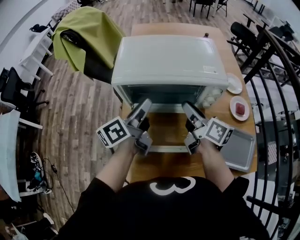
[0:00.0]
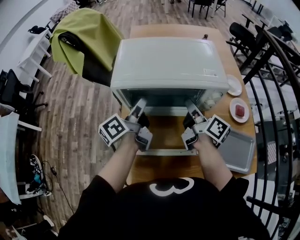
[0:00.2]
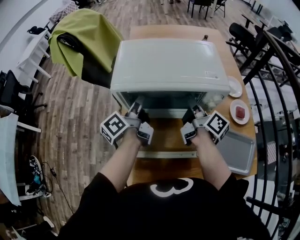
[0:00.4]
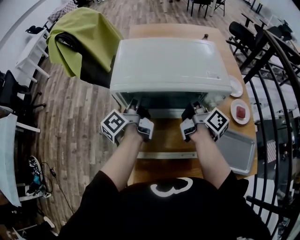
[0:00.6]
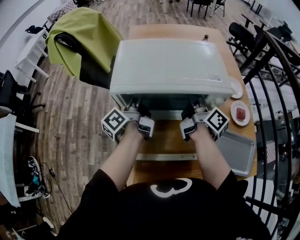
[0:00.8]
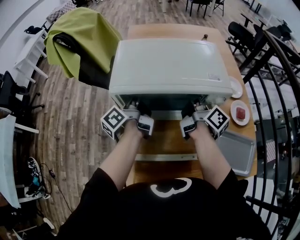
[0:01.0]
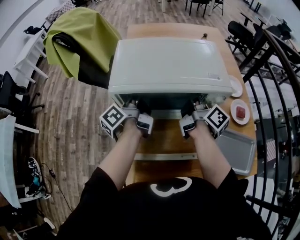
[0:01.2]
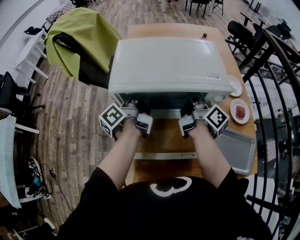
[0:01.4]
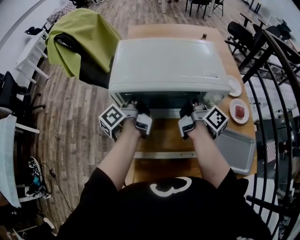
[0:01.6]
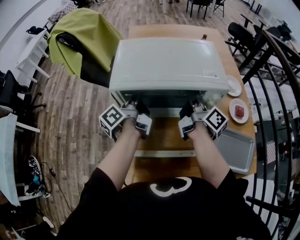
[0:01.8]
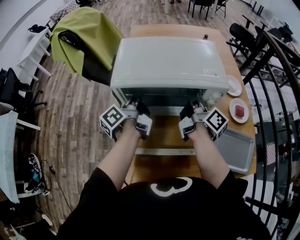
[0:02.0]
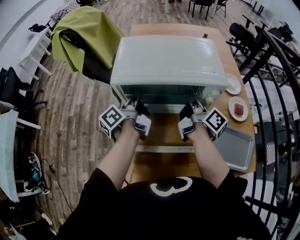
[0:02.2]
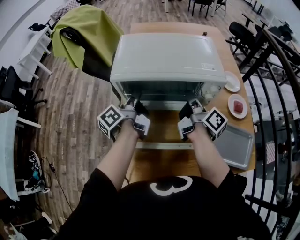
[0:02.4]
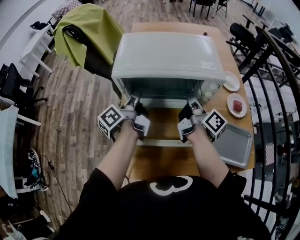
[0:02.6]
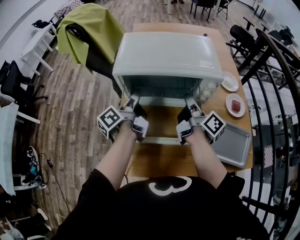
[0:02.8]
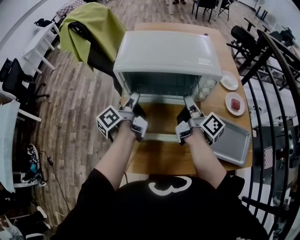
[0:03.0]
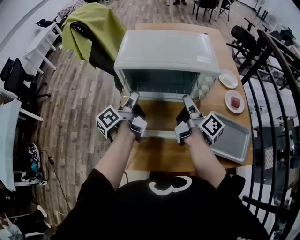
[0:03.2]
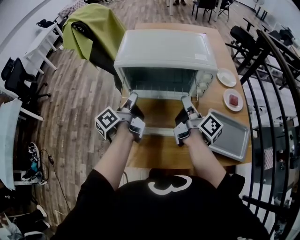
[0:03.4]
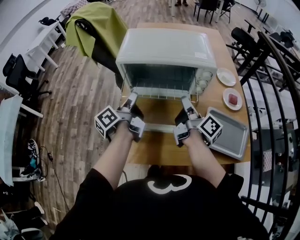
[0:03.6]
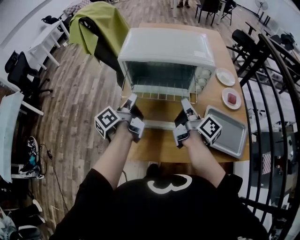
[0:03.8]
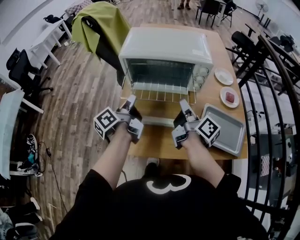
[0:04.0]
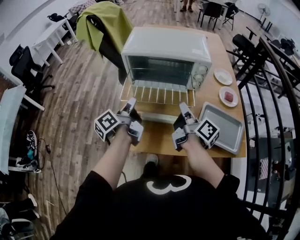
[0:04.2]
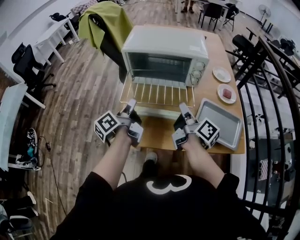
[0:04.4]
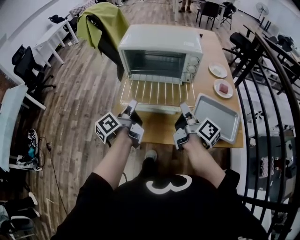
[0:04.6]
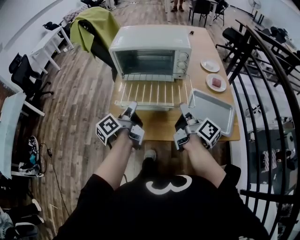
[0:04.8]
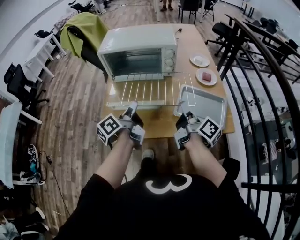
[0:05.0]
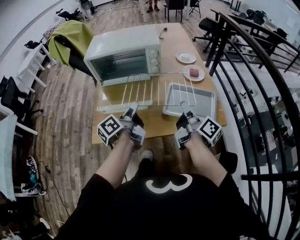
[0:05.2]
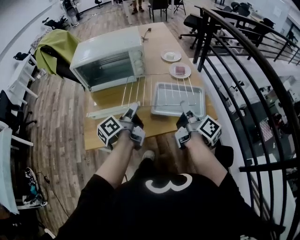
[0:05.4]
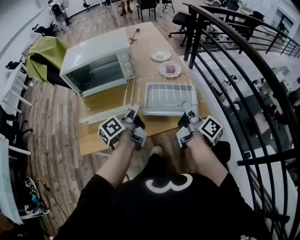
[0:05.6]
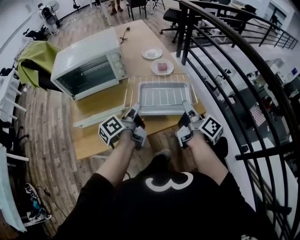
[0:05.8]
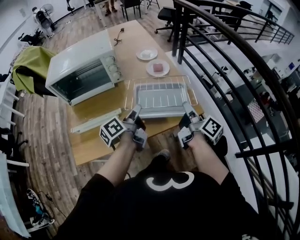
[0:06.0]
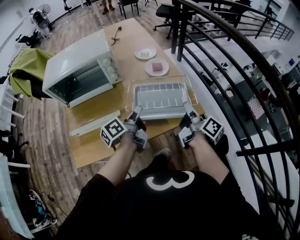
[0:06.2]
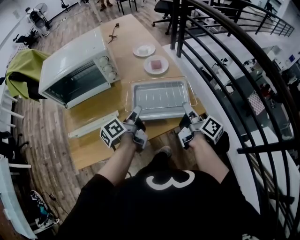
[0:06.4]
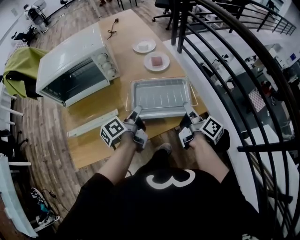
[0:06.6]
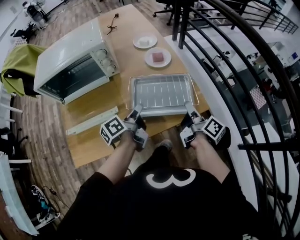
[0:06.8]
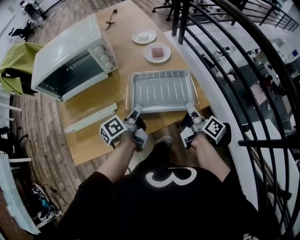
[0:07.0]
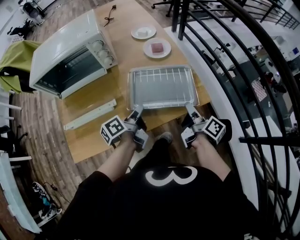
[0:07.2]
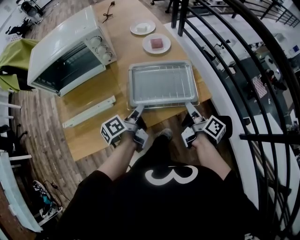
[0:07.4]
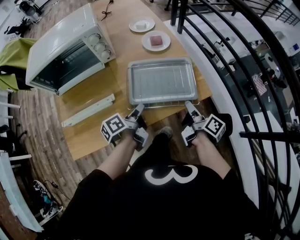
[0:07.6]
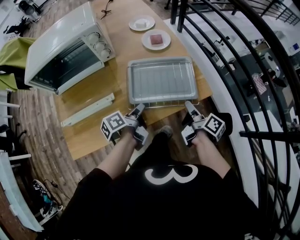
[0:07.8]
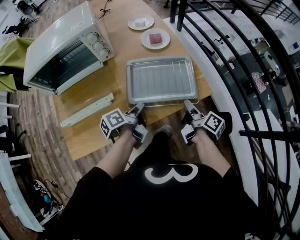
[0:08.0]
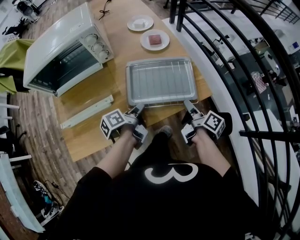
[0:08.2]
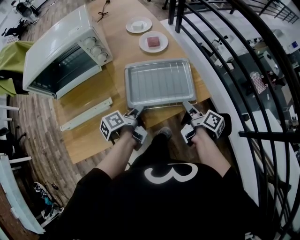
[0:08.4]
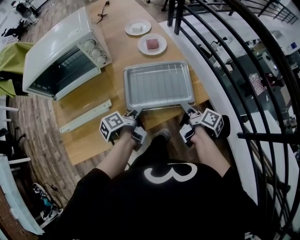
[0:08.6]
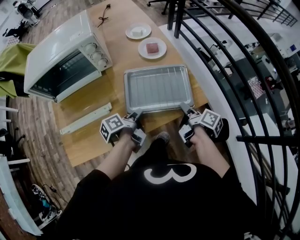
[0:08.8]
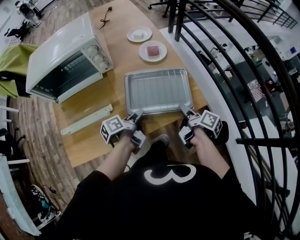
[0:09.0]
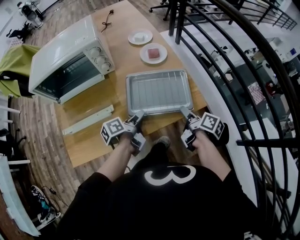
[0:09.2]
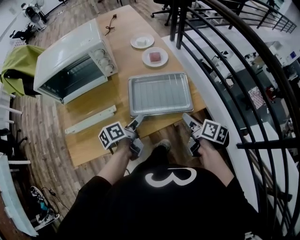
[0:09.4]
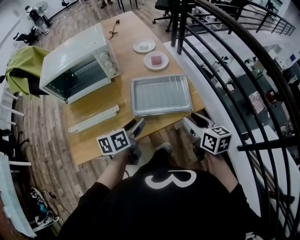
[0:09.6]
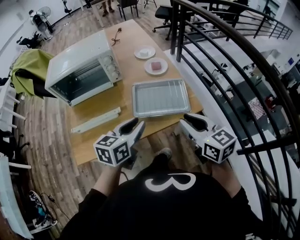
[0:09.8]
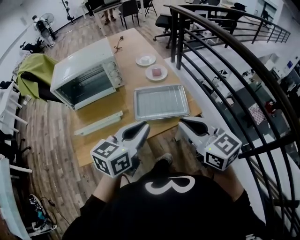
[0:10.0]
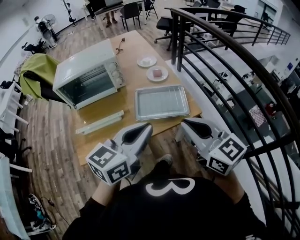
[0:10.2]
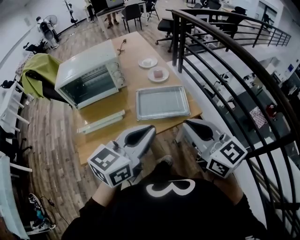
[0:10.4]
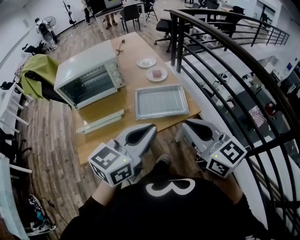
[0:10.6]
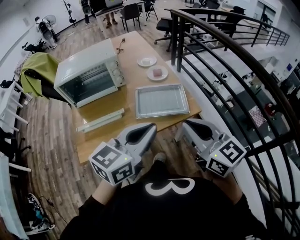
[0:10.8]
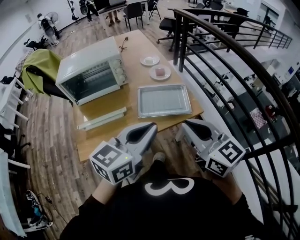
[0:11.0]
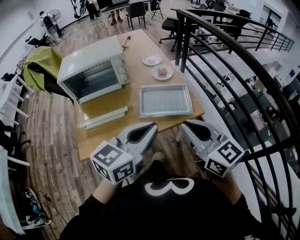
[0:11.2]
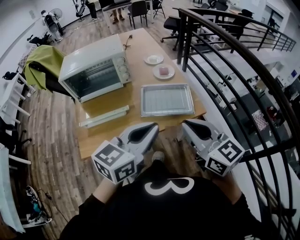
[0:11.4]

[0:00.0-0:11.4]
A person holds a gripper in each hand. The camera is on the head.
0:00.0 to 0:01.4: Both grippers move forward, some 10 cm. The left gripper rotates roughly 30 degrees, while the right gripper swivels approximately 30 degrees.
0:01.4 to 0:02.8: Both grippers move backward, approximately 10 cm.
0:02.8 to 0:04.2: The grippers both shift backward by about 15 cm.
0:04.2 to 0:05.6: The left gripper moves to the right, about 30 cm, and changes its angle by about 20 degrees; the right gripper goes about 35 cm to the right and backward, and changes its angle by some 20 degrees.
0:05.6 to 0:07.2: The two grippers go some 15 cm downward and to the right.
0:07.2 to 0:08.6: The left gripper goes some 5 cm downward.
0:08.6 to 0:10.0: Both grippers travel together upward and backward, about 30 cm. The right gripper rolls counterclockwise, seen from behind, by about 80 degrees, and opens and closes again. The left gripper rotates around the line of its fingers by approximately 70 degrees, clockwise from behind, and opens, then closes again.
0:10.0 to 0:11.4: The left gripper travels backward by approximately 5 cm.

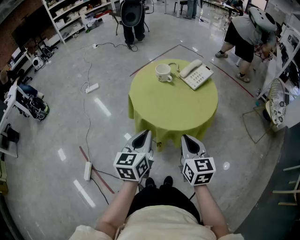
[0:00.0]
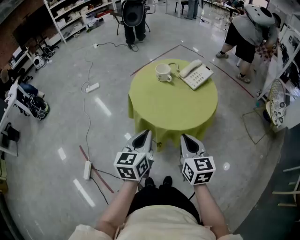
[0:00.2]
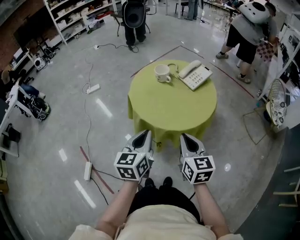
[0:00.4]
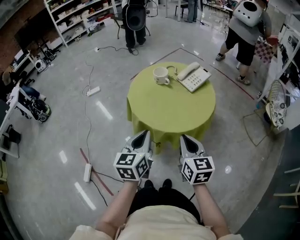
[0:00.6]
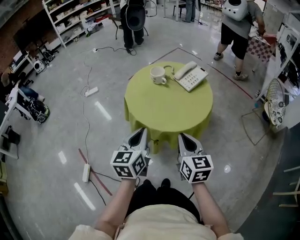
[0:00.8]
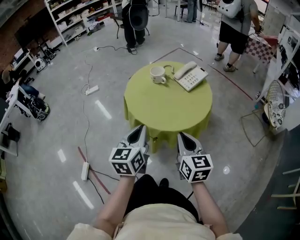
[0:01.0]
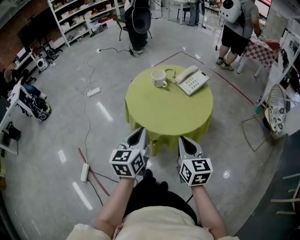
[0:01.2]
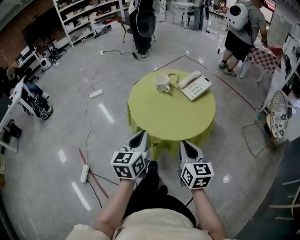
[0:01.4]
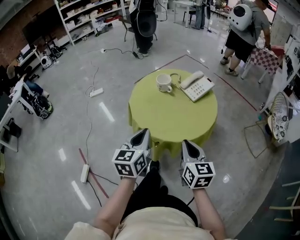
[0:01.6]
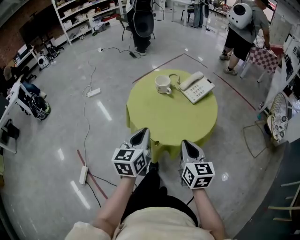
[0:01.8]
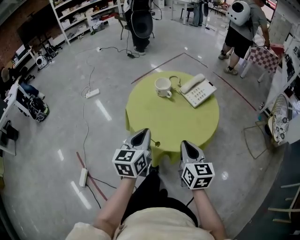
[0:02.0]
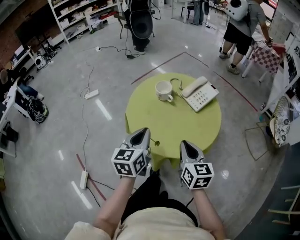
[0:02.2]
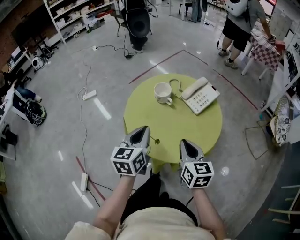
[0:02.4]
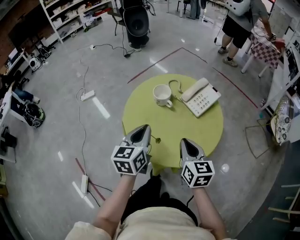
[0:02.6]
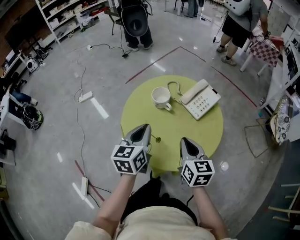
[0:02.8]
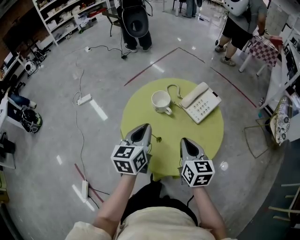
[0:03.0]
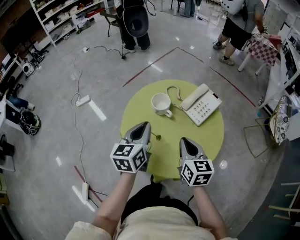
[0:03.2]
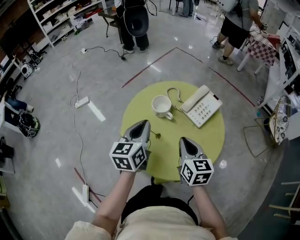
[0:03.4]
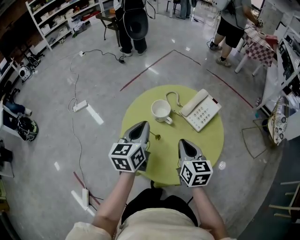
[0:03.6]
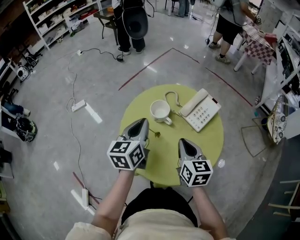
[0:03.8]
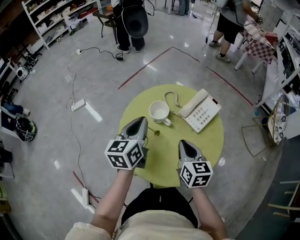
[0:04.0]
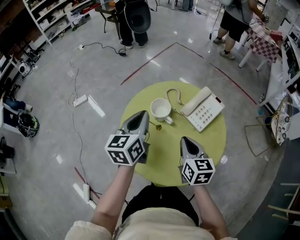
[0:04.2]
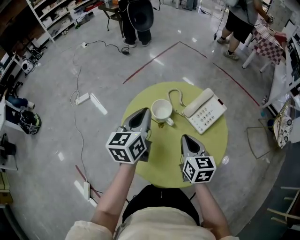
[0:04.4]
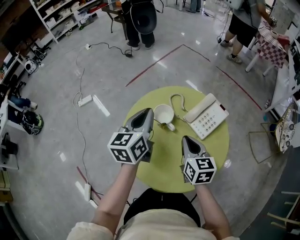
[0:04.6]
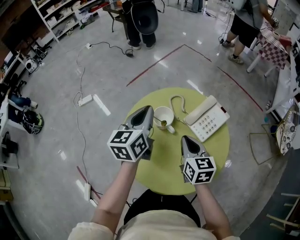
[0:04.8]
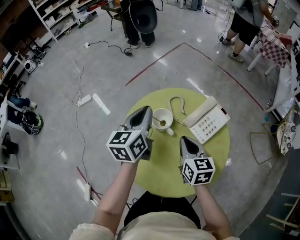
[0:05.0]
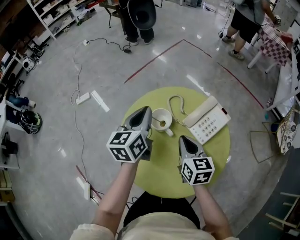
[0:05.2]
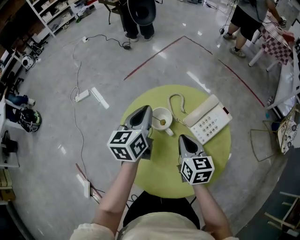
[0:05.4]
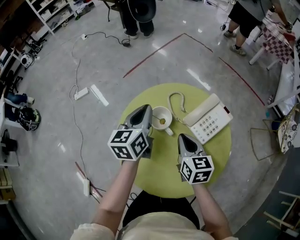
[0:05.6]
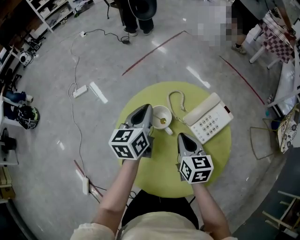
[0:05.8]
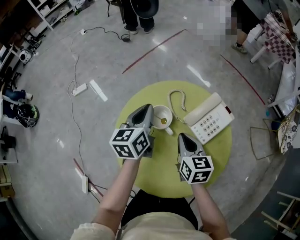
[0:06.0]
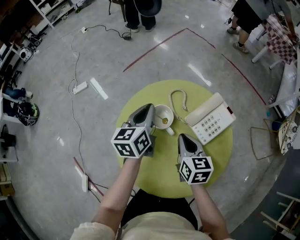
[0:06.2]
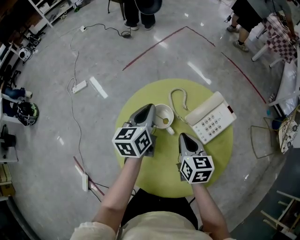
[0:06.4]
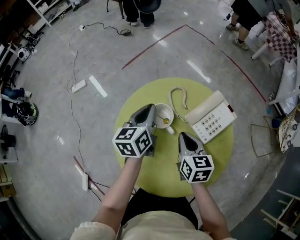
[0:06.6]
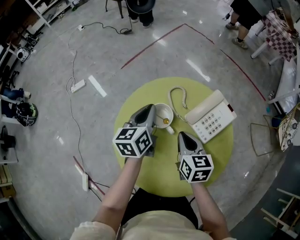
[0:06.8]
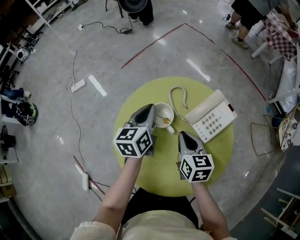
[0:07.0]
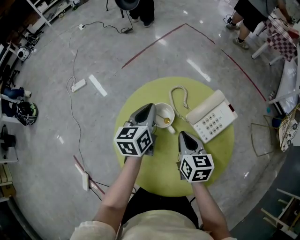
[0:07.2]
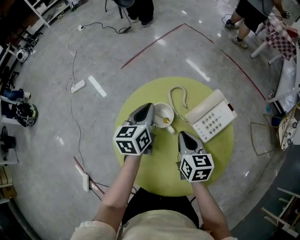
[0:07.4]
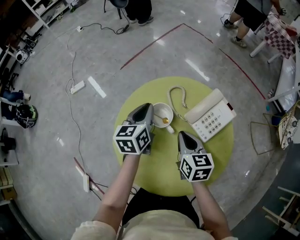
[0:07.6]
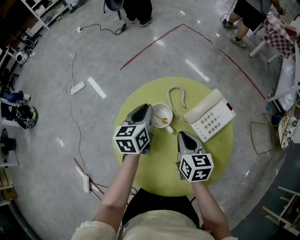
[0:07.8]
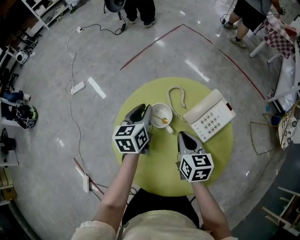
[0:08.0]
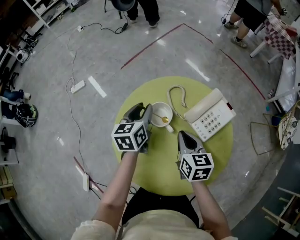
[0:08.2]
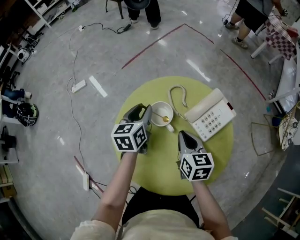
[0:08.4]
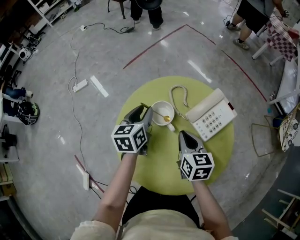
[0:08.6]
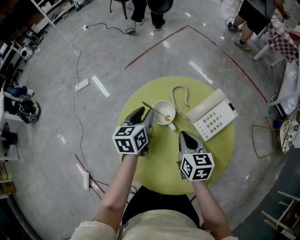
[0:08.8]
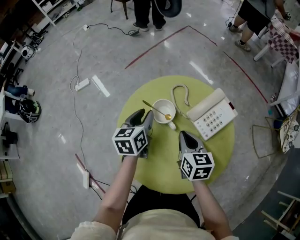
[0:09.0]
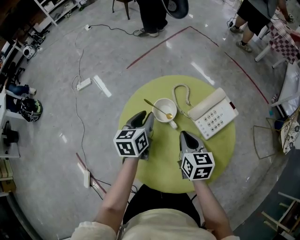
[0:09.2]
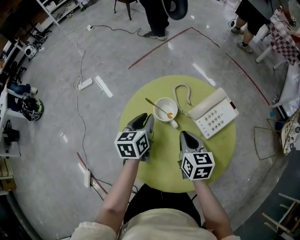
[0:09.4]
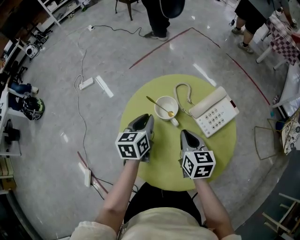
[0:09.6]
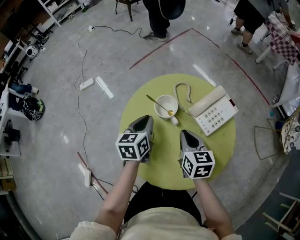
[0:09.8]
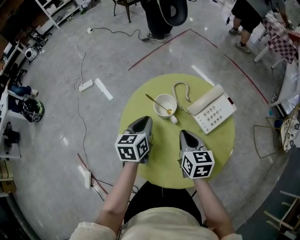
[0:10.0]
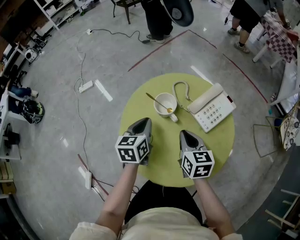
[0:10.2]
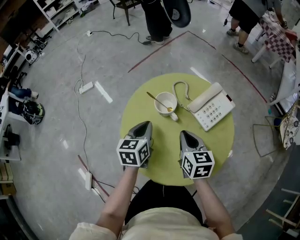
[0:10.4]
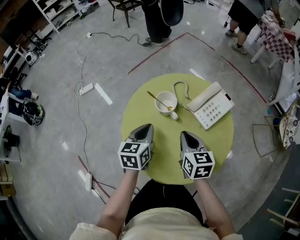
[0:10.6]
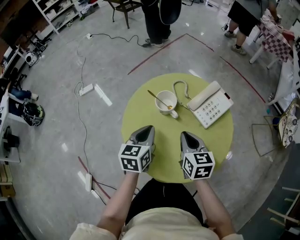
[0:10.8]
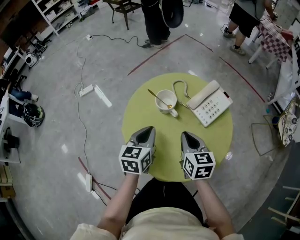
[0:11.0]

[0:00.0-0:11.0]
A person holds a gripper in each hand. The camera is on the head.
0:00.0 to 0:01.6: The grippers move only a little.
0:01.6 to 0:03.2: Both grippers move forward, roughly 25 cm.
0:03.2 to 0:04.8: The grippers both shift forward by approximately 10 cm.
0:04.8 to 0:06.2: The left gripper shifts approximately 10 cm downward, while the right gripper ends up approximately 5 cm from where it was.
0:06.2 to 0:07.8: The grippers make only small movements.
0:07.8 to 0:09.4: The left gripper travels backward by some 5 cm.
0:09.4 to 0:11.0: The right gripper goes some 5 cm backward. Meanwhile the left gripper travels backward by approximately 10 cm, and closes its fingers.

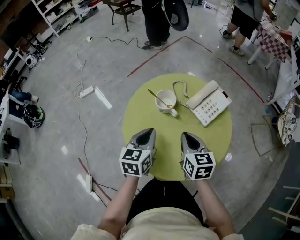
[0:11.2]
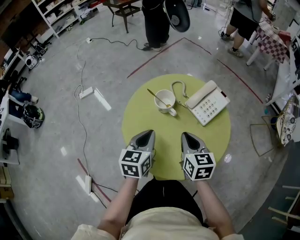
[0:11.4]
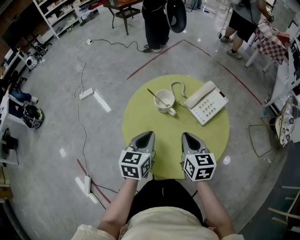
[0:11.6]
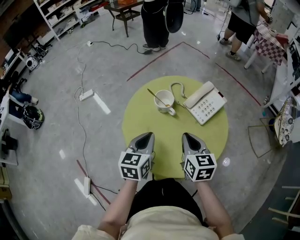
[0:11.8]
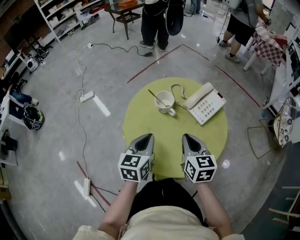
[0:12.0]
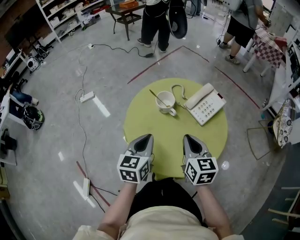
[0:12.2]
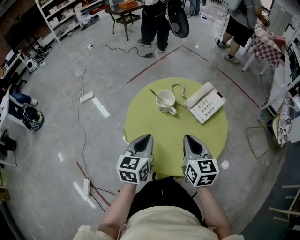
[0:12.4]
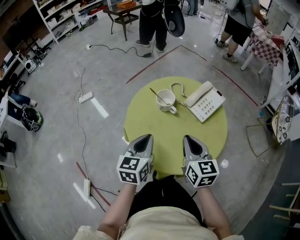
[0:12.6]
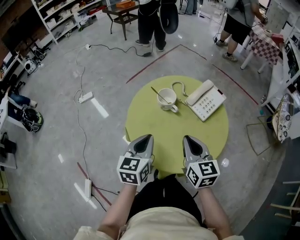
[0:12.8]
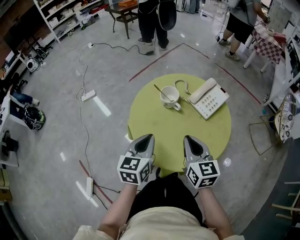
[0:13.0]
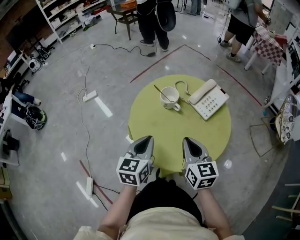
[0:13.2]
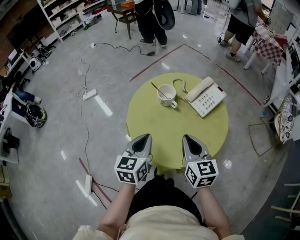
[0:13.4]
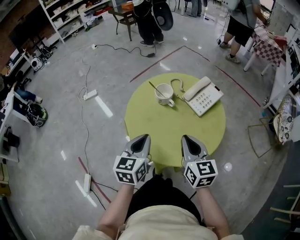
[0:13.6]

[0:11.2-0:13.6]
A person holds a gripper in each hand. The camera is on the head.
0:11.2 to 0:12.4: The right gripper is displaced upward and backward by about 10 cm, while the left gripper travels backward by roughly 5 cm.
0:12.4 to 0:13.6: The two grippers go about 5 cm backward.
